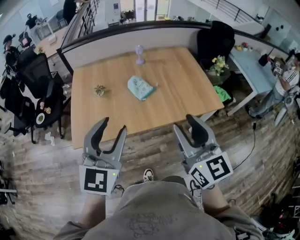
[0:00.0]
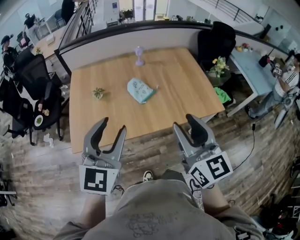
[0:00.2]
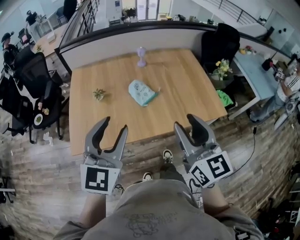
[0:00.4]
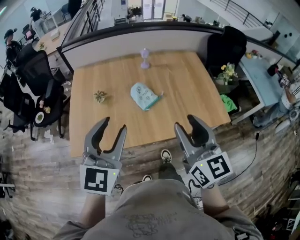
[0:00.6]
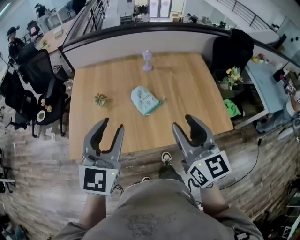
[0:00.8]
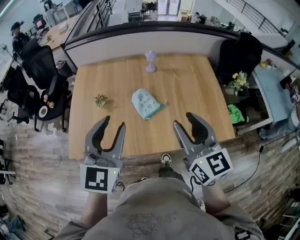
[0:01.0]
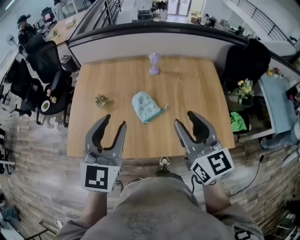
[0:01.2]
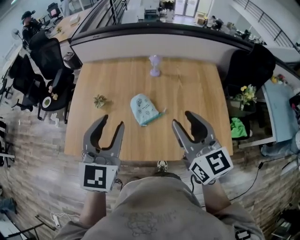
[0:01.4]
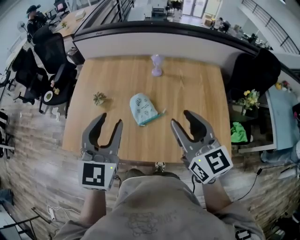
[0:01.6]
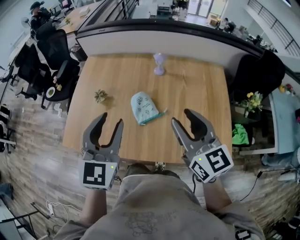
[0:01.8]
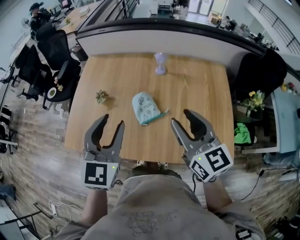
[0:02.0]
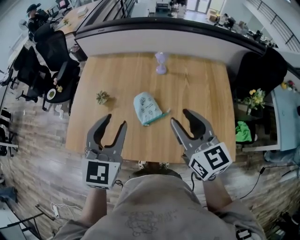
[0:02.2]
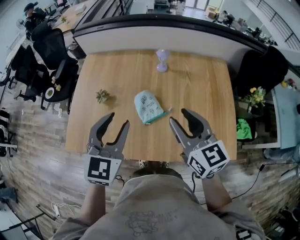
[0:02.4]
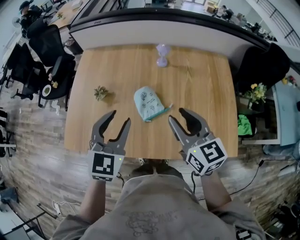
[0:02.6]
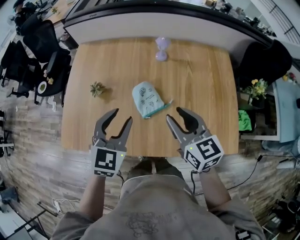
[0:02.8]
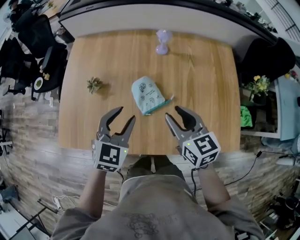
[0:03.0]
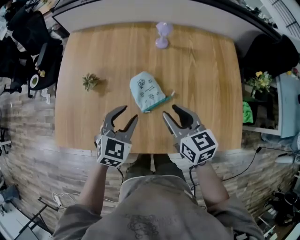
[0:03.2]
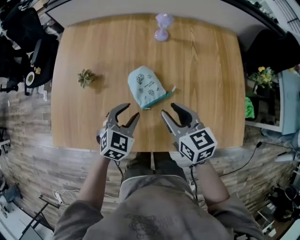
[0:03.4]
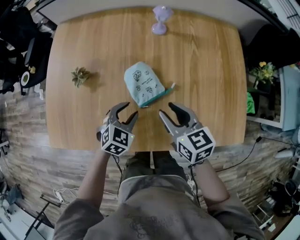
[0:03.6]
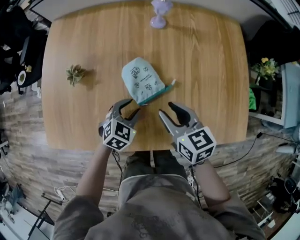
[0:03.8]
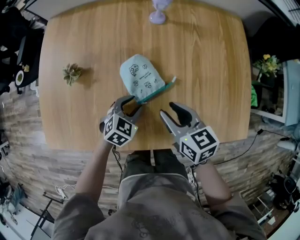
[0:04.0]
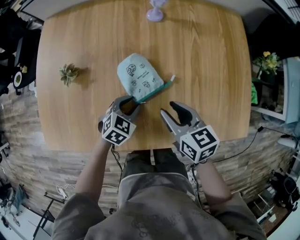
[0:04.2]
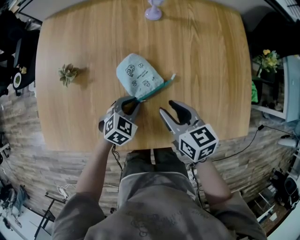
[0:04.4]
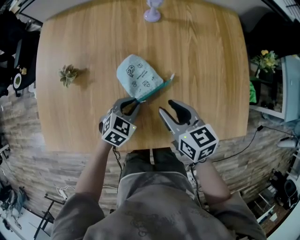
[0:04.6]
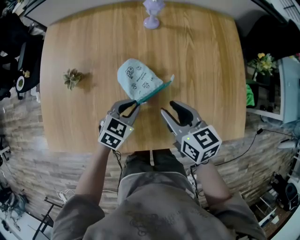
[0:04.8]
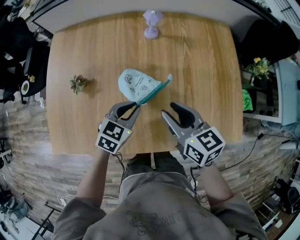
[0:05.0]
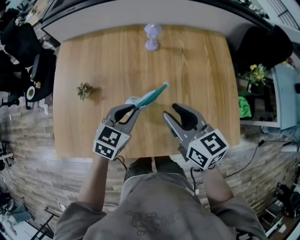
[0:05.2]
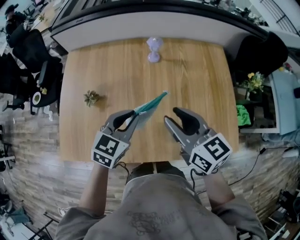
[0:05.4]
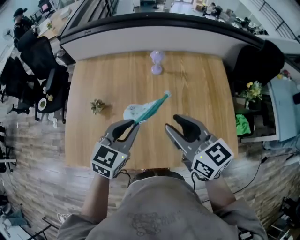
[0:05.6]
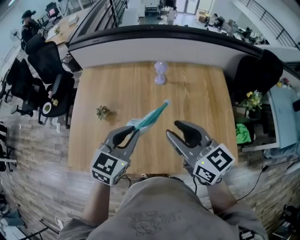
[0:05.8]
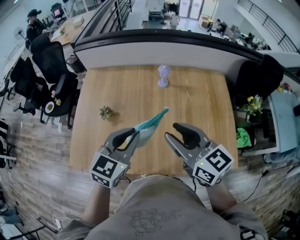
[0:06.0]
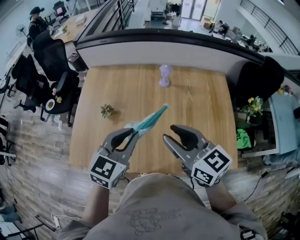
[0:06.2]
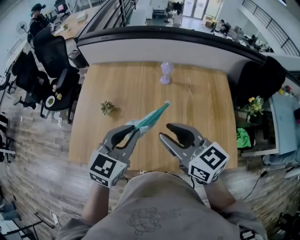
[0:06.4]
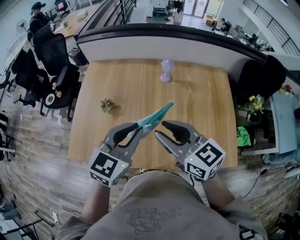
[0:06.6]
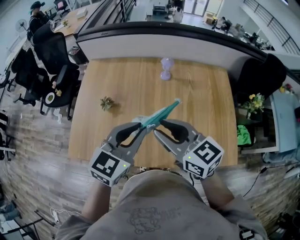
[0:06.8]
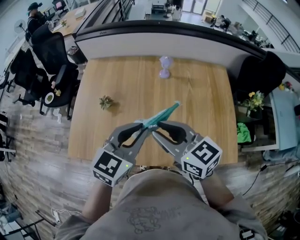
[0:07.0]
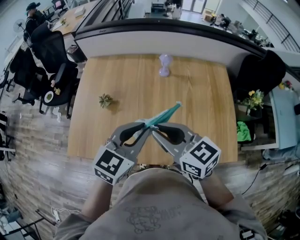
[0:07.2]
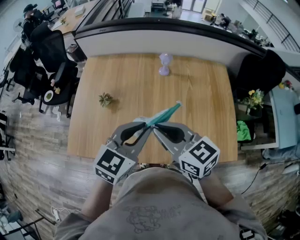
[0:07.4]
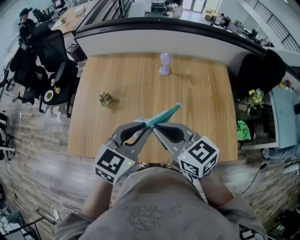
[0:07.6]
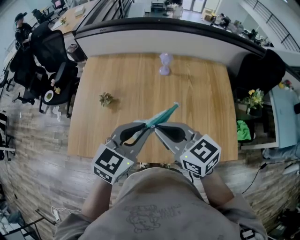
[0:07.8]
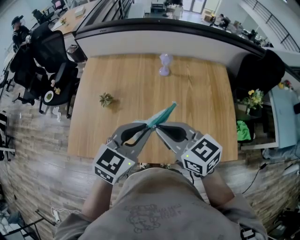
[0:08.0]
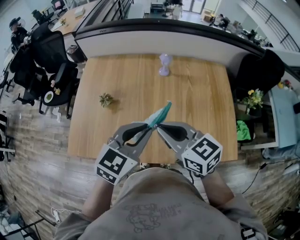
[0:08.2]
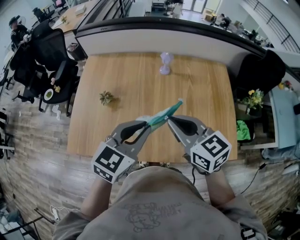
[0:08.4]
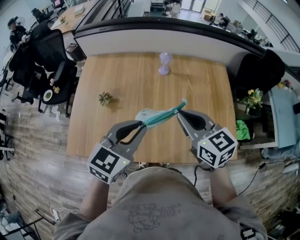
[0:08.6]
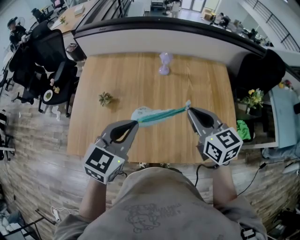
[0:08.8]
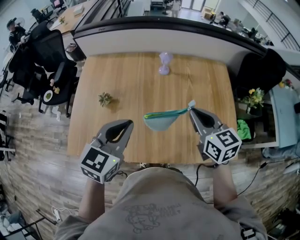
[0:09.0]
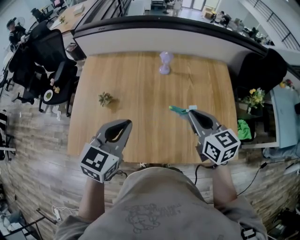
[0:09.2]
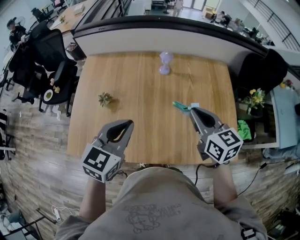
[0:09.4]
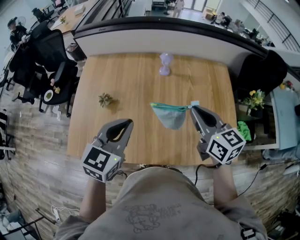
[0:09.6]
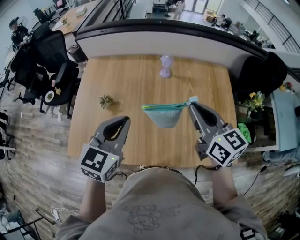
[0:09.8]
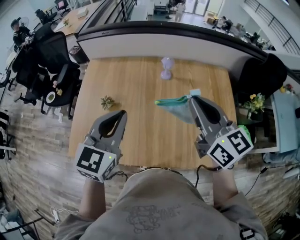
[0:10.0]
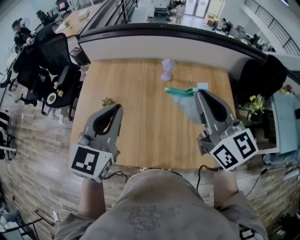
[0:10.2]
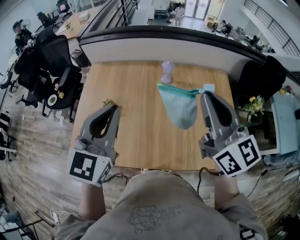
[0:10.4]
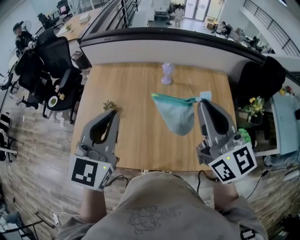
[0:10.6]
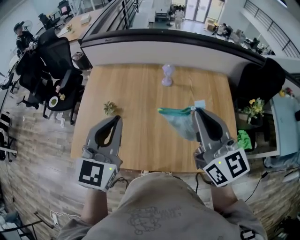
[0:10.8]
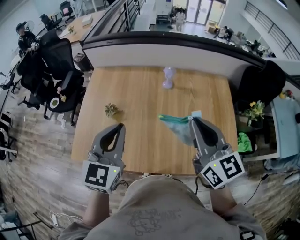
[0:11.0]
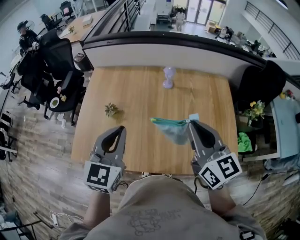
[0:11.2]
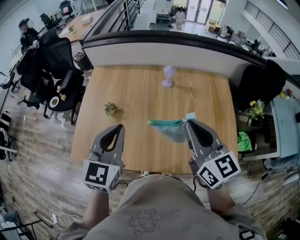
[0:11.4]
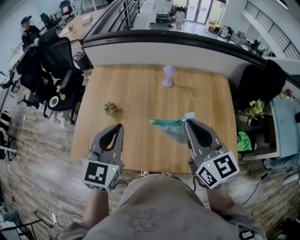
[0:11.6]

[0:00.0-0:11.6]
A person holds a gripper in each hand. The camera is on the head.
0:00.0 to 0:01.4: The grippers both shift forward by some 25 cm.
0:01.4 to 0:02.8: Both grippers travel together downward and forward, roughly 15 cm.
0:02.8 to 0:04.4: The left gripper is displaced downward by some 30 cm, rotates some 40 degrees, and closes its fingers. The right gripper goes some 20 cm downward, and rotates roughly 20 degrees.
0:04.4 to 0:05.8: The grippers both shift upward by approximately 30 cm. The left gripper swivels about 30 degrees. The right gripper rotates roughly 30 degrees.
0:05.8 to 0:07.2: The left gripper shifts by about 5 cm, while the right gripper goes roughly 5 cm to the left, and closes up.
0:07.2 to 0:08.8: The right gripper travels to the right by some 10 cm, and swivels roughly 20 degrees.
0:08.8 to 0:10.2: The left gripper travels upward by about 10 cm. The right gripper travels upward by roughly 15 cm, and swivels roughly 20 degrees.
0:10.2 to 0:11.6: The right gripper is displaced downward by some 5 cm. The left gripper moves some 5 cm.

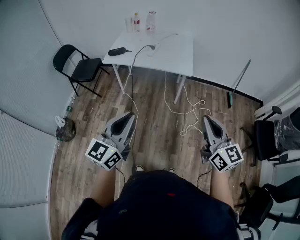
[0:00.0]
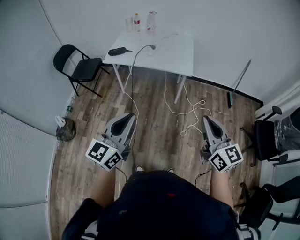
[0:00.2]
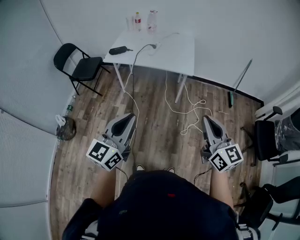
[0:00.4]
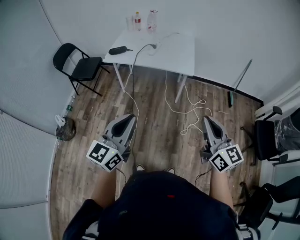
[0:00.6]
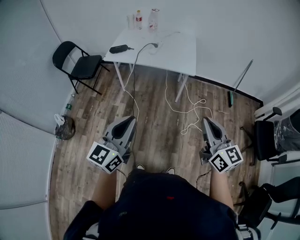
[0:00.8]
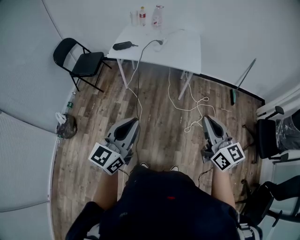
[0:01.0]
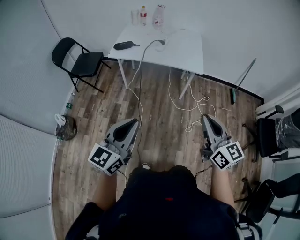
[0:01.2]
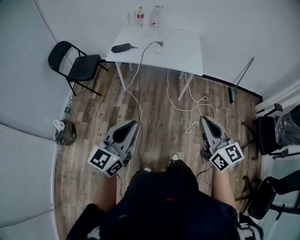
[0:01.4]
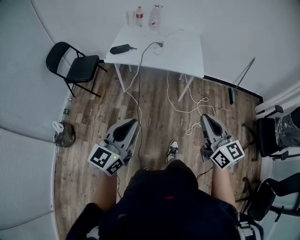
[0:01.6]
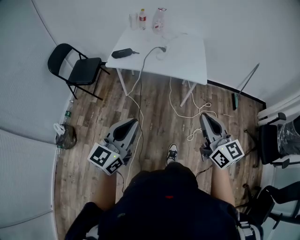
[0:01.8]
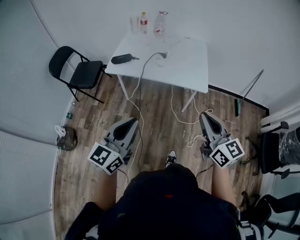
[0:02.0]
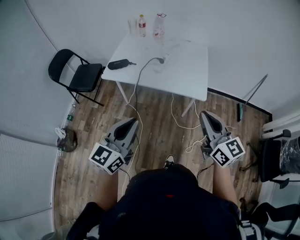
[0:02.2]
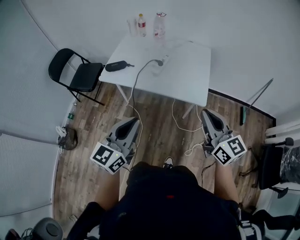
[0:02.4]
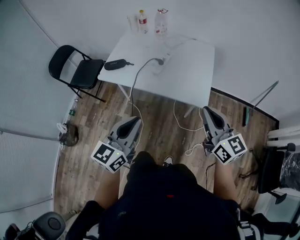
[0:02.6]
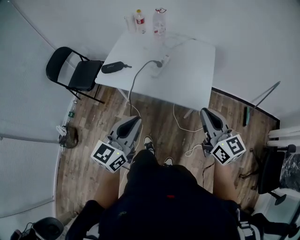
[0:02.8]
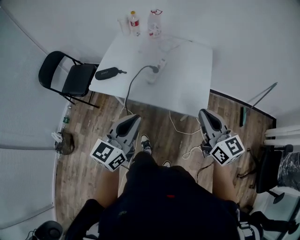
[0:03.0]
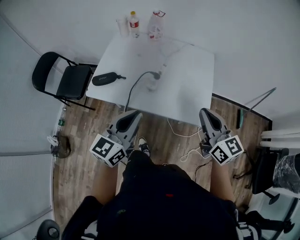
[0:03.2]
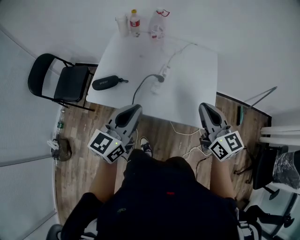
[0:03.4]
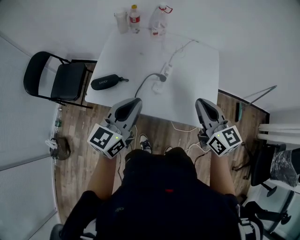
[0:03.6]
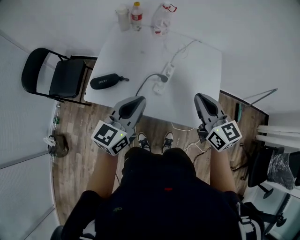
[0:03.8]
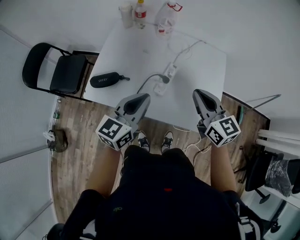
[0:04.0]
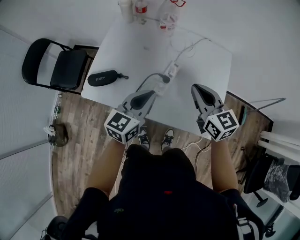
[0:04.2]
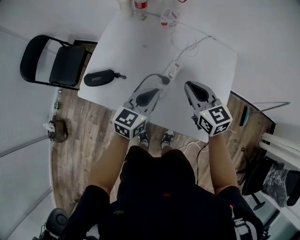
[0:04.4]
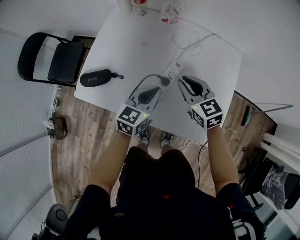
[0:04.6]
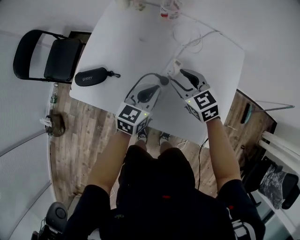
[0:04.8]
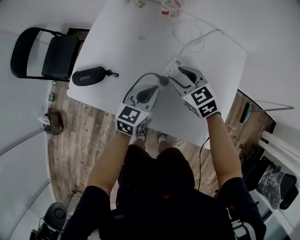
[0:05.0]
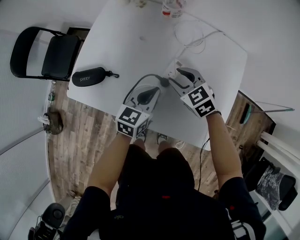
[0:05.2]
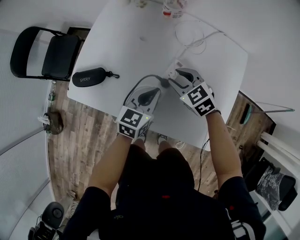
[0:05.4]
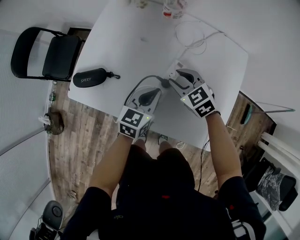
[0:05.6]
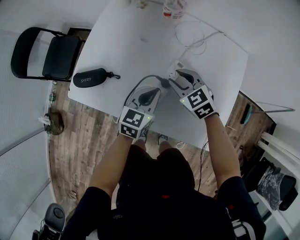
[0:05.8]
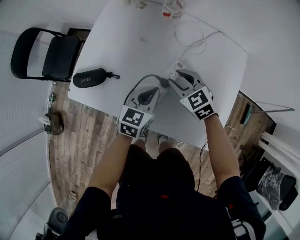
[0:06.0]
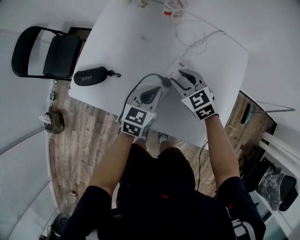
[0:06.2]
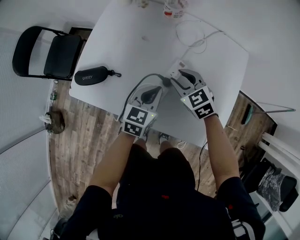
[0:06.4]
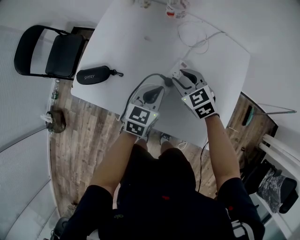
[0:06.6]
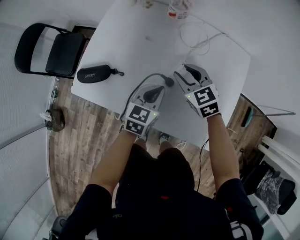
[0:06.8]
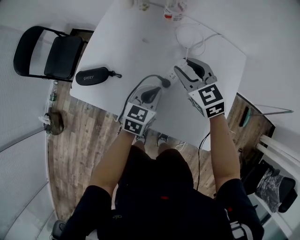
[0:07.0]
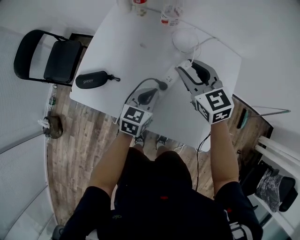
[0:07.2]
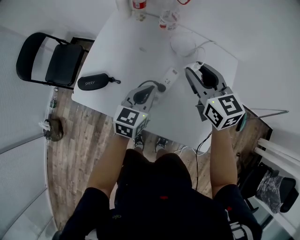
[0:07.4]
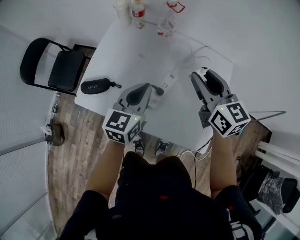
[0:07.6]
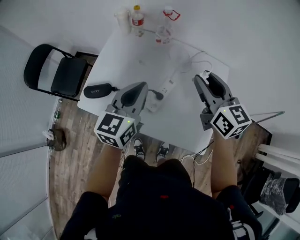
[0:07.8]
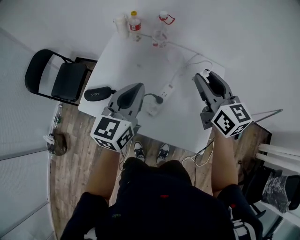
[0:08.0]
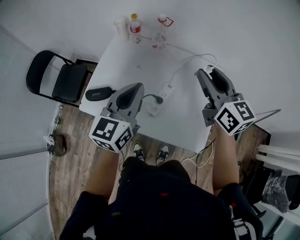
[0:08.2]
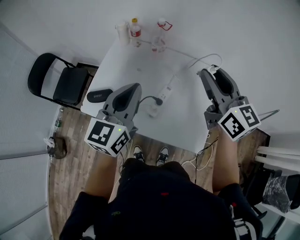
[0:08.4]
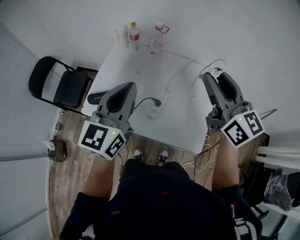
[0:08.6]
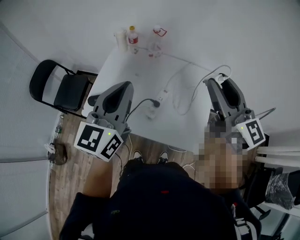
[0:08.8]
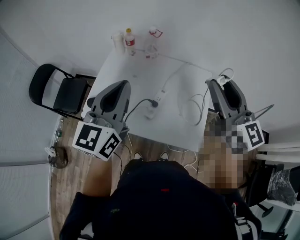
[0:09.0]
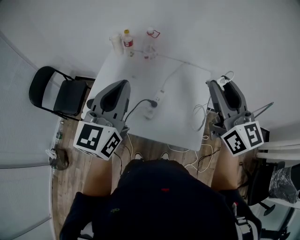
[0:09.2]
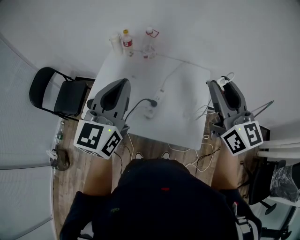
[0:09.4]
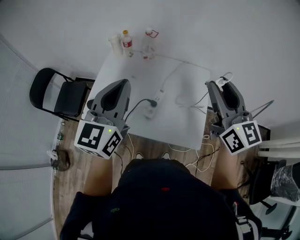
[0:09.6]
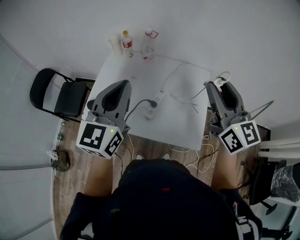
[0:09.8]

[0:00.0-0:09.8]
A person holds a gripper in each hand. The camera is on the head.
0:00.0 to 0:01.4: Both grippers move to the left, approximately 15 cm.
0:01.4 to 0:02.8: The right gripper is displaced forward by approximately 40 cm. Meanwhile the left gripper is displaced forward and to the right by about 40 cm.
0:02.8 to 0:04.2: The left gripper shifts some 35 cm forward; the right gripper heads forward and to the left, covering about 35 cm.
0:04.2 to 0:05.6: Both grippers travel together downward and forward, some 20 cm. The right gripper turns by some 40 degrees, and opens.
0:05.6 to 0:07.0: The right gripper moves upward, some 10 cm.
0:07.0 to 0:08.4: The two grippers go approximately 30 cm upward. The right gripper angles its fingers upward, by about 30 degrees. The left gripper rotates roughly 30 degrees.
0:08.4 to 0:09.8: The right gripper shifts some 10 cm backward and to the right. The left gripper moves upward, about 10 cm.

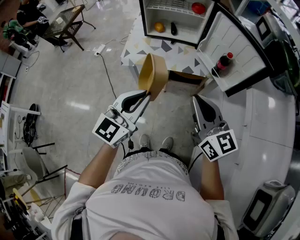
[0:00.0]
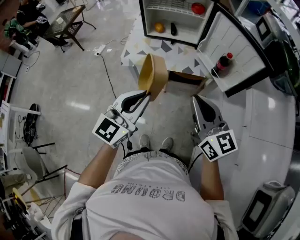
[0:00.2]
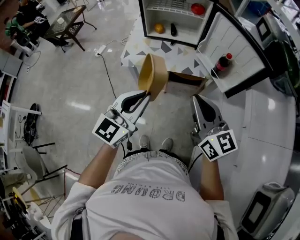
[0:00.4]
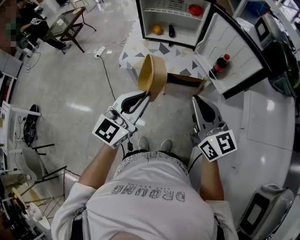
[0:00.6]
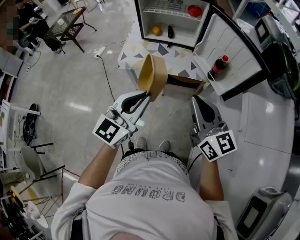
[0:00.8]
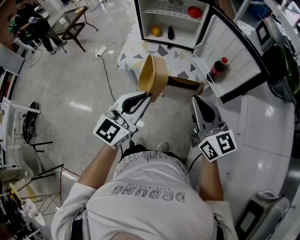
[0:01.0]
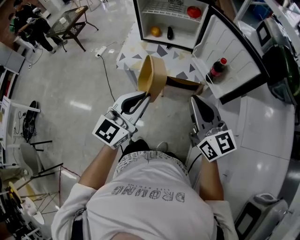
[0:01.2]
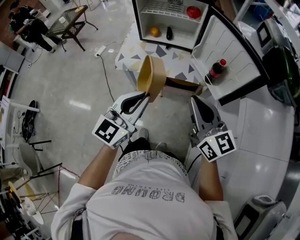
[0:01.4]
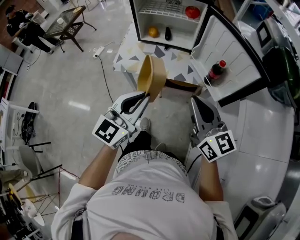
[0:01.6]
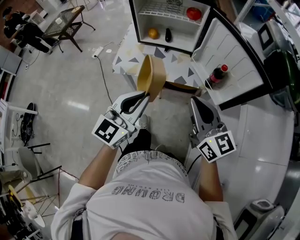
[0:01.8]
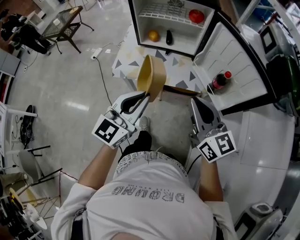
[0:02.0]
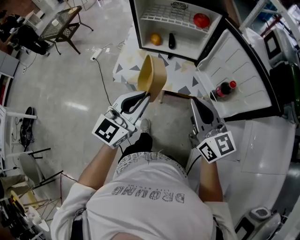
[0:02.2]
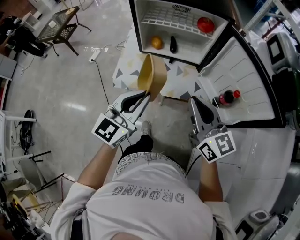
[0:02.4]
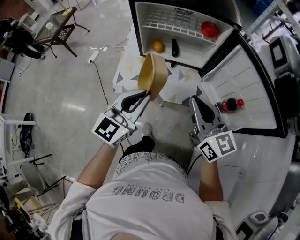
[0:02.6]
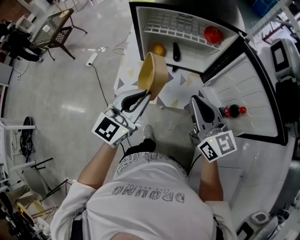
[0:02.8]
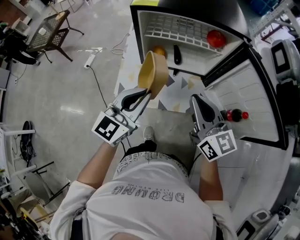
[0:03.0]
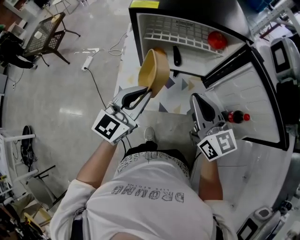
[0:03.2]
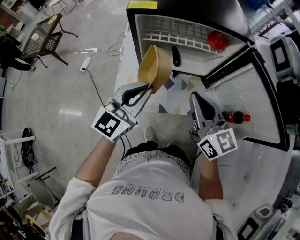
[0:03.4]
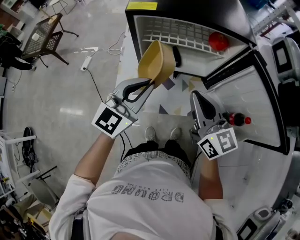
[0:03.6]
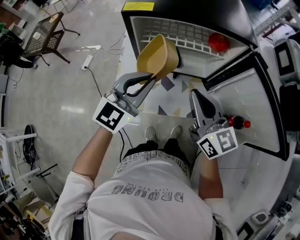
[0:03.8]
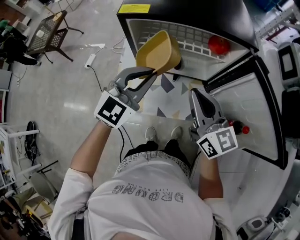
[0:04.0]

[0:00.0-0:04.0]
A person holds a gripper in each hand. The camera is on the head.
0:00.0 to 0:01.4: The grippers both shift to the right by roughly 5 cm.
0:01.4 to 0:02.6: The two grippers go about 20 cm forward.
0:02.6 to 0:04.0: The two grippers go about 15 cm forward. The left gripper changes its angle by some 20 degrees.
